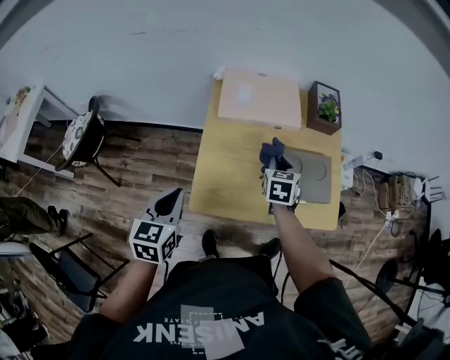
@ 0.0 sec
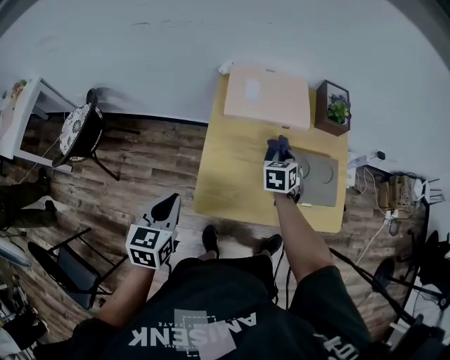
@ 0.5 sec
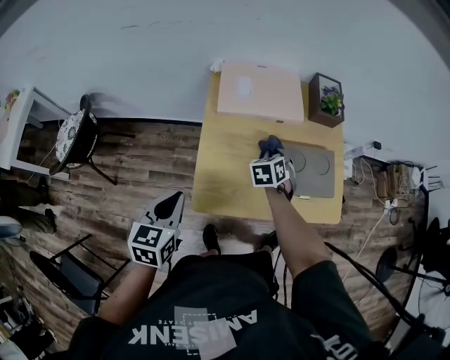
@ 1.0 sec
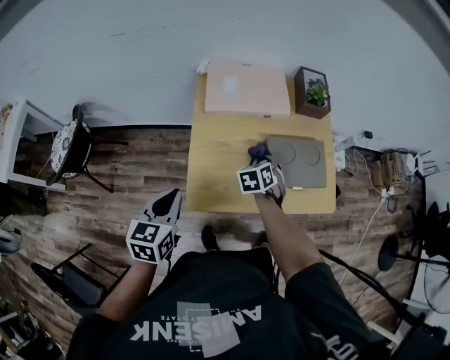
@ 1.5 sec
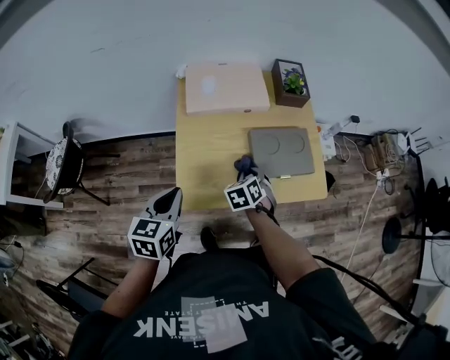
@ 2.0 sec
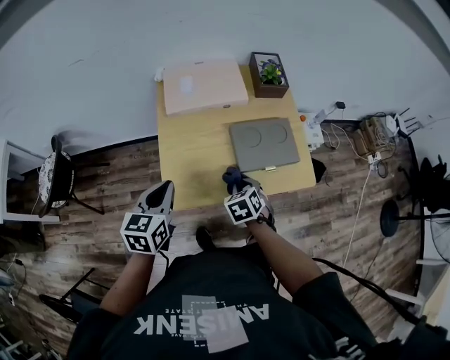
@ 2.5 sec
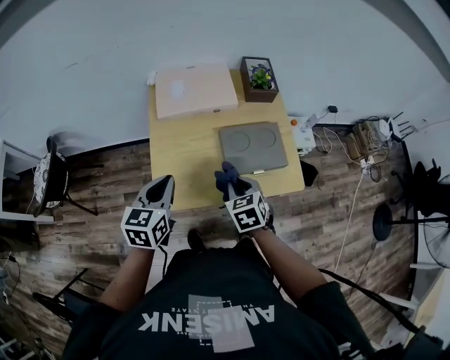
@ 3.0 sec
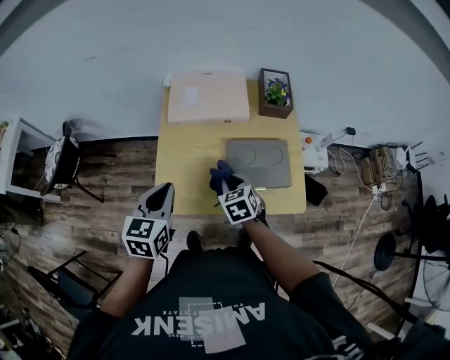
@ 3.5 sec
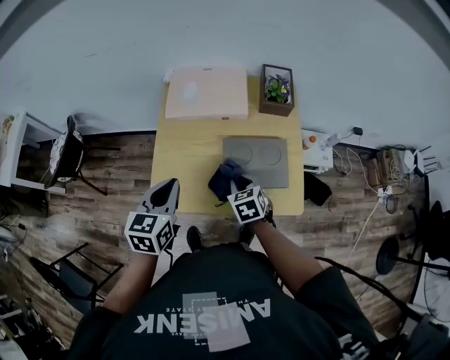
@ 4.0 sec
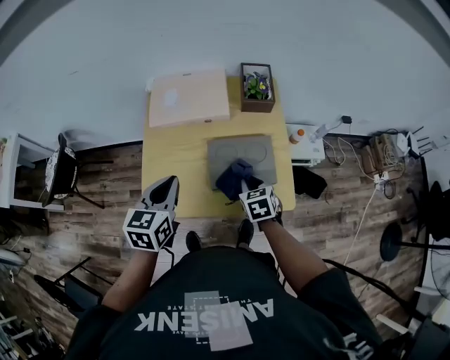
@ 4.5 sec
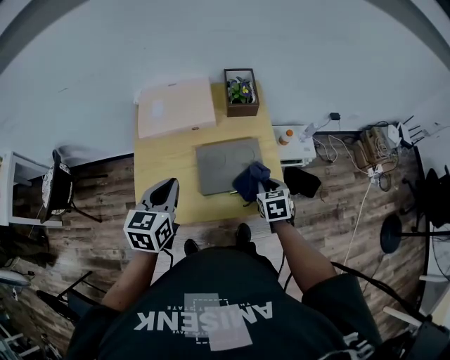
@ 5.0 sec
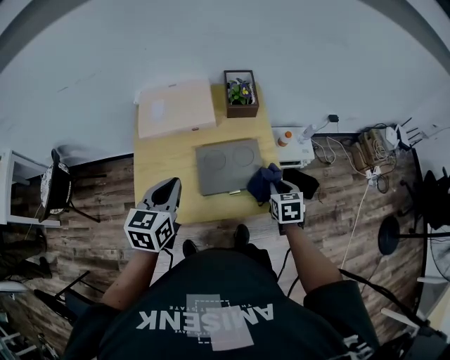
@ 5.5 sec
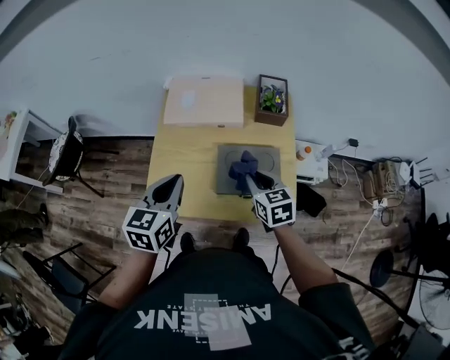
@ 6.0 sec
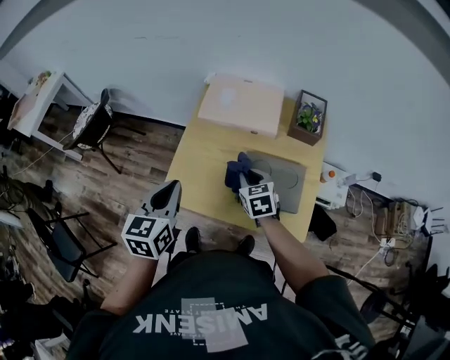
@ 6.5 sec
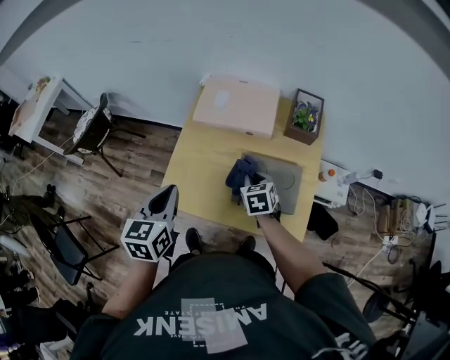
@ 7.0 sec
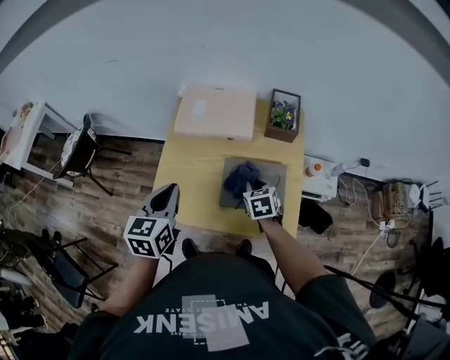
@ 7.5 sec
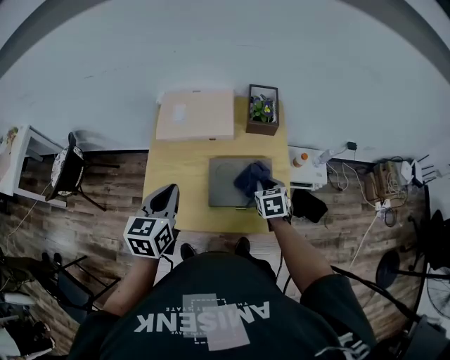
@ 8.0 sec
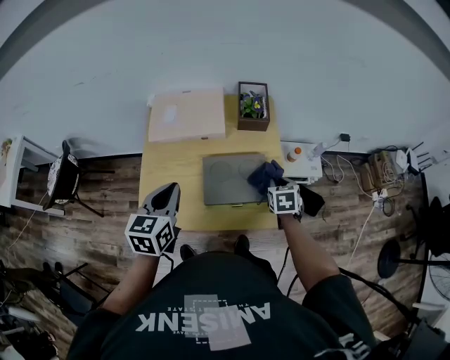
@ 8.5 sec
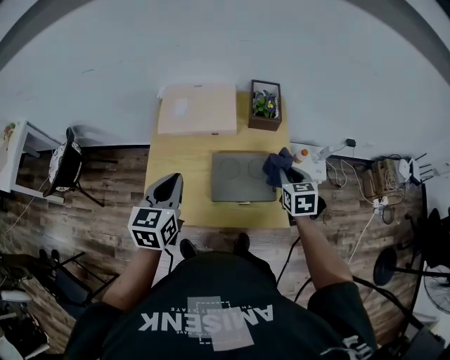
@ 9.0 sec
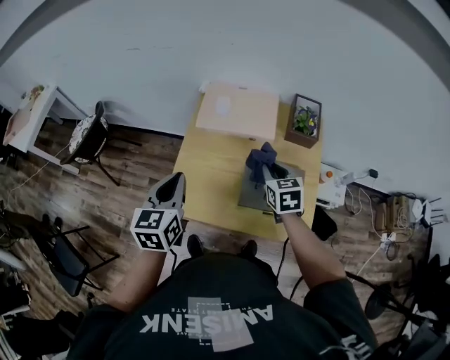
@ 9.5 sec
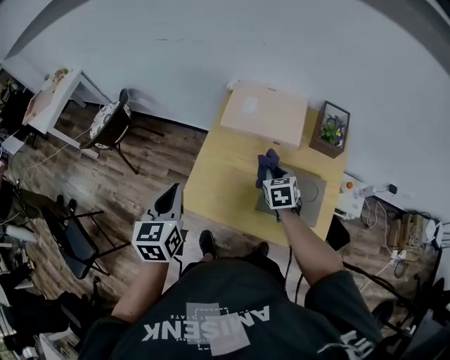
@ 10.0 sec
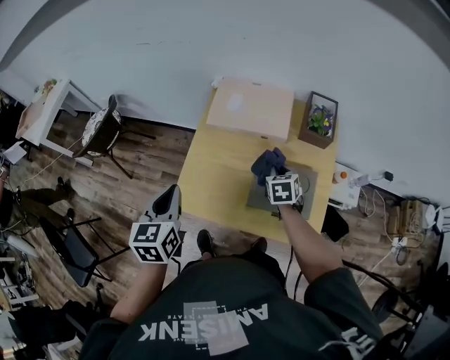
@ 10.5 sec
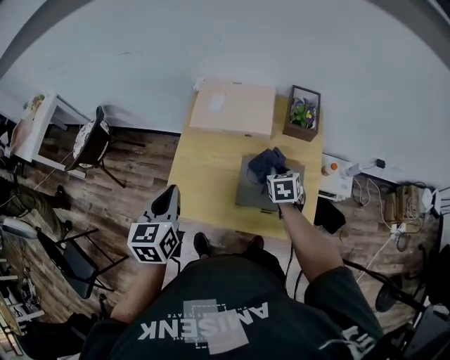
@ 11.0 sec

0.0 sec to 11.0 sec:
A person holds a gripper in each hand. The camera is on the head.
0.0 sec to 2.0 sec: The right gripper shifts approximately 10 cm backward and downward, and changes its angle by some 20 degrees.
2.0 sec to 3.5 sec: The right gripper goes roughly 5 cm upward, and changes its angle by about 20 degrees; the left gripper moves to the right, some 10 cm.
3.5 sec to 5.5 sec: The left gripper shifts roughly 10 cm to the right. The right gripper travels to the right by about 25 cm, and changes its angle by about 20 degrees.
5.5 sec to 7.5 sec: The right gripper moves about 5 cm upward and comes back, and turns by some 20 degrees.
7.5 sec to 9.0 sec: The right gripper moves to the right and upward, roughly 15 cm.
9.0 sec to 11.0 sec: The right gripper shifts some 15 cm to the left, forward and downward. Meanwhile the left gripper shifts roughly 10 cm to the left.

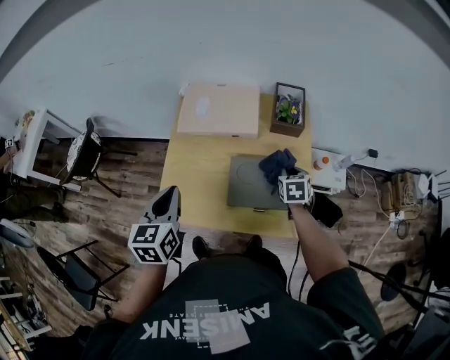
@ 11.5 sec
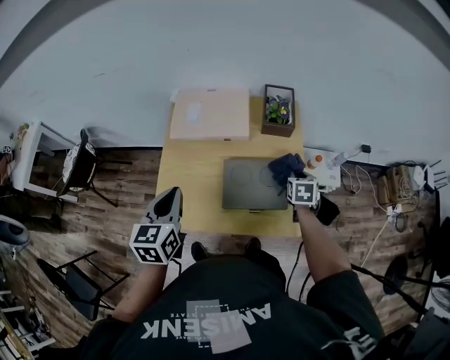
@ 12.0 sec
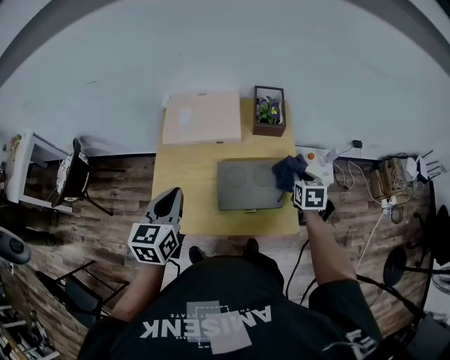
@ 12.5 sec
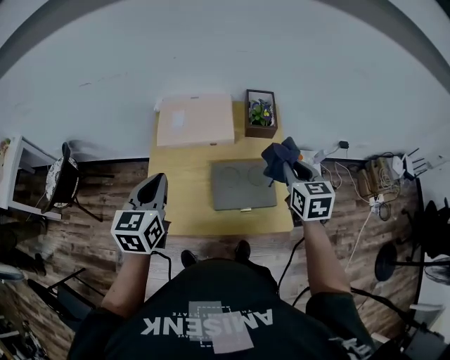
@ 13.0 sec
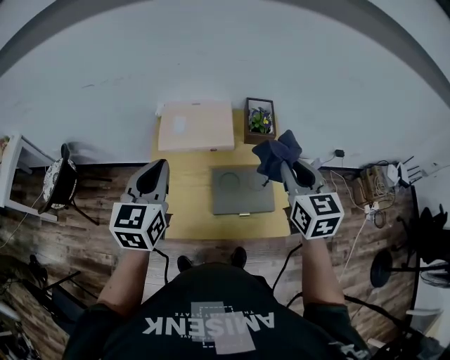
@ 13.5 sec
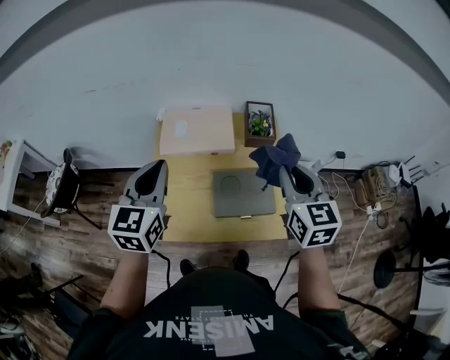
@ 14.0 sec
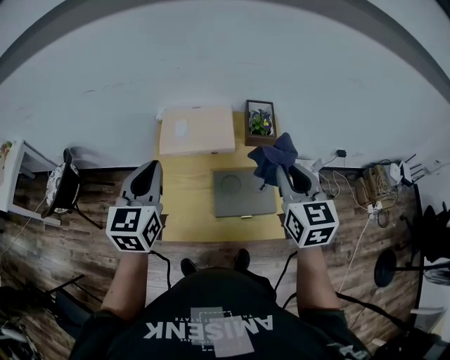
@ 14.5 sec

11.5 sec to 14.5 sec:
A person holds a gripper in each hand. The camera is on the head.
11.5 sec to 13.0 sec: The right gripper goes roughly 20 cm upward, and swivels roughly 20 degrees; the left gripper moves some 5 cm.
13.0 sec to 14.5 sec: The left gripper travels upward by about 5 cm. The right gripper heads upward and to the left, covering some 10 cm.

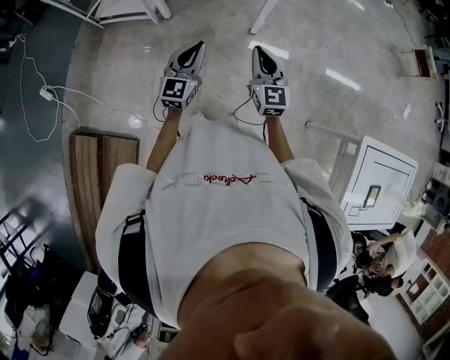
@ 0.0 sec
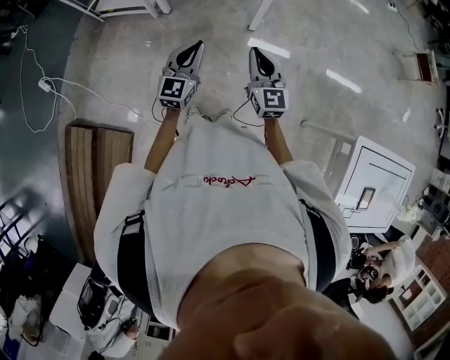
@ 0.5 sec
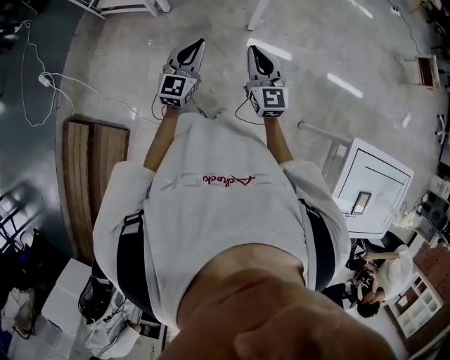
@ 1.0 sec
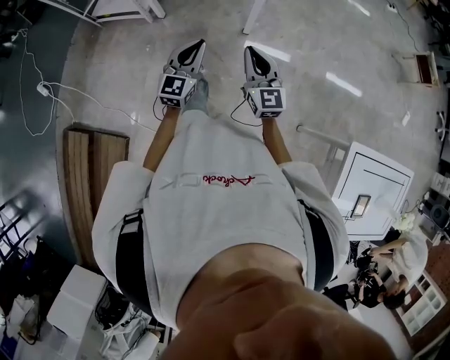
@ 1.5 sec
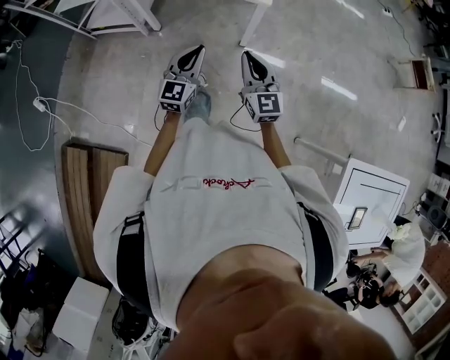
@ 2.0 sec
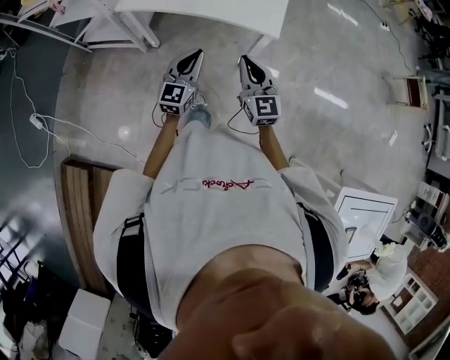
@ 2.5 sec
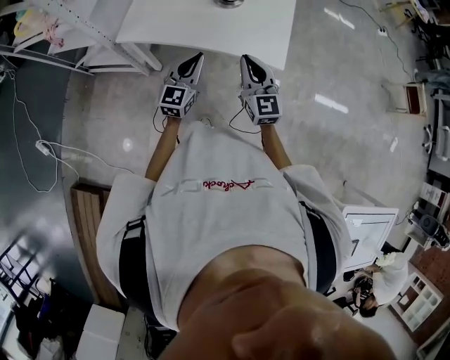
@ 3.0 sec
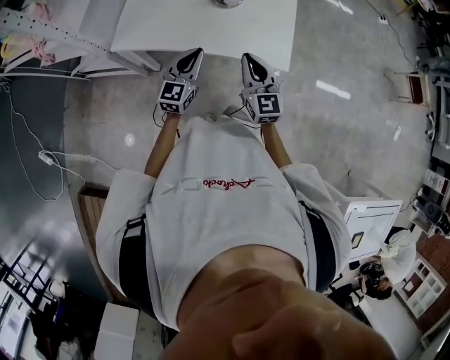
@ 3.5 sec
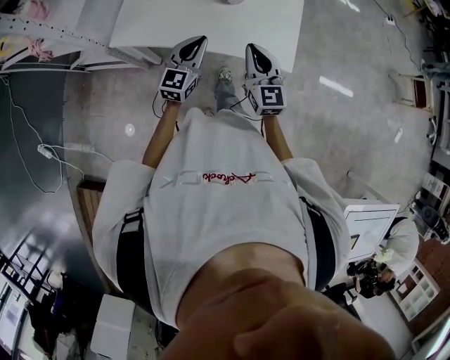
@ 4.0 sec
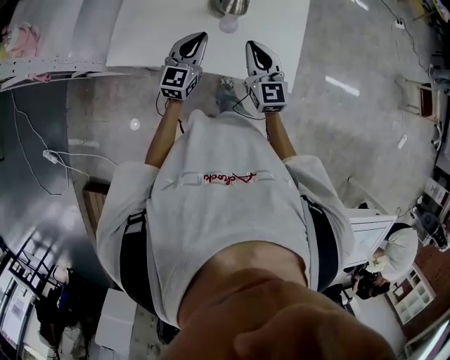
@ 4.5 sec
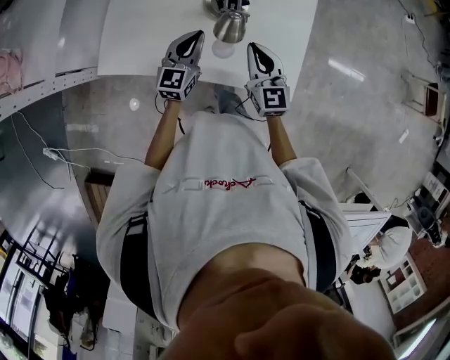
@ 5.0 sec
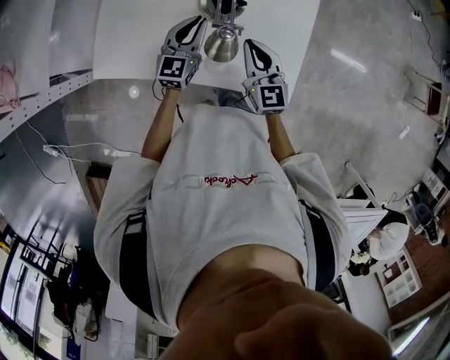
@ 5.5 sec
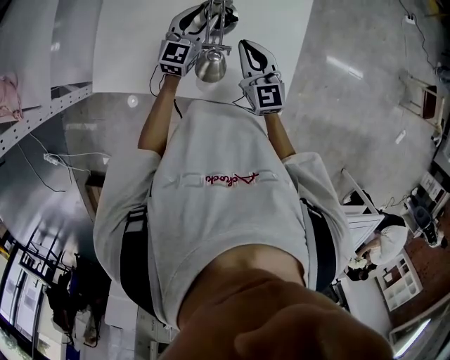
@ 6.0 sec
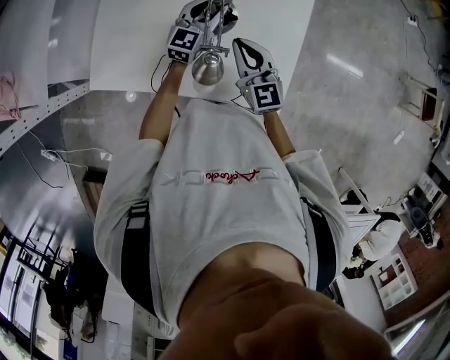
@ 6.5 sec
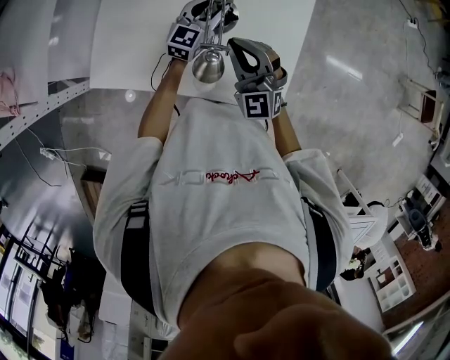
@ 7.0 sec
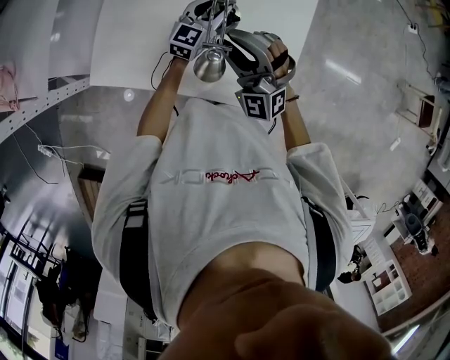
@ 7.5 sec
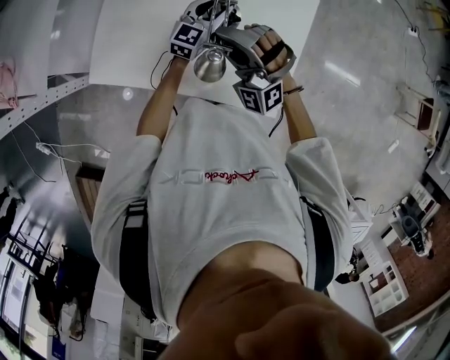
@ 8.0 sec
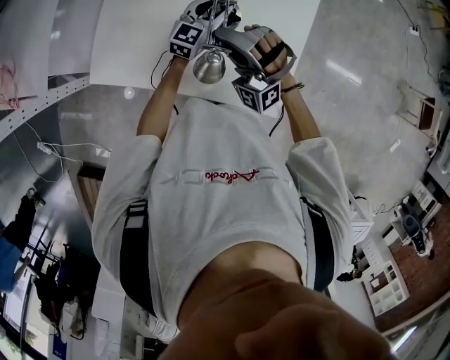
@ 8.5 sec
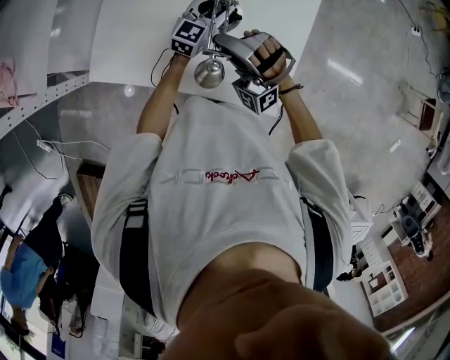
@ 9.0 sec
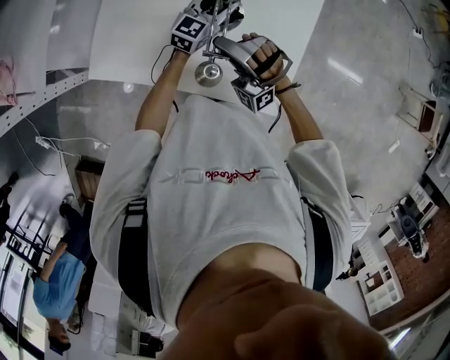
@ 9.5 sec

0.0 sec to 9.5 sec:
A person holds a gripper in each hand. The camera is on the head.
0.0 sec to 2.0 sec: The right gripper moves forward, approximately 5 cm. Meanwhile the left gripper is displaced forward and to the right by about 10 cm.
2.0 sec to 4.0 sec: Both grippers move forward, roughly 35 cm.
4.0 sec to 5.5 sec: The left gripper heads forward, covering about 20 cm. The right gripper heads forward and downward, covering roughly 15 cm.
5.5 sec to 7.5 sec: The right gripper goes some 10 cm upward and to the left, twists approximately 60 degrees counterclockwise, seen from behind, and opens up, while the left gripper goes approximately 10 cm forward and to the right, and opens up.
7.5 sec to 9.5 sec: The right gripper turns by approximately 30 degrees, and closes its fingers.

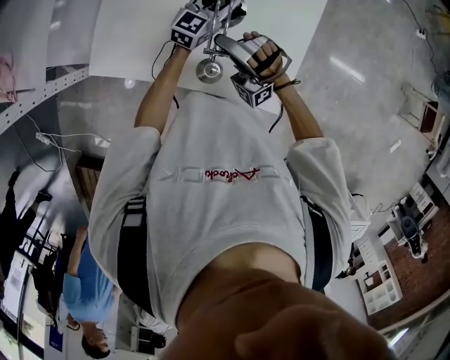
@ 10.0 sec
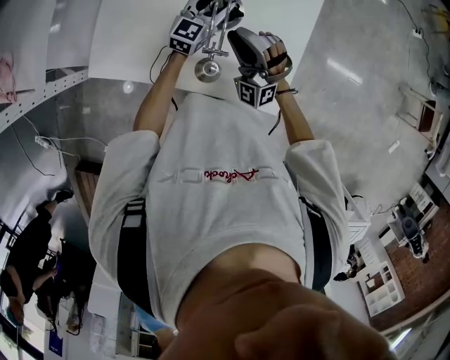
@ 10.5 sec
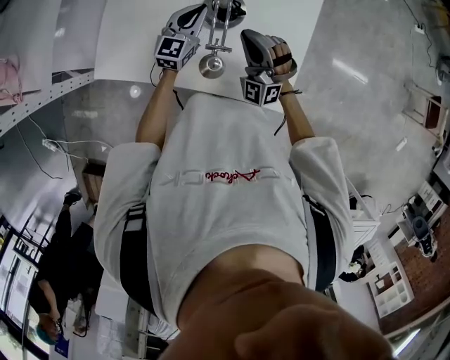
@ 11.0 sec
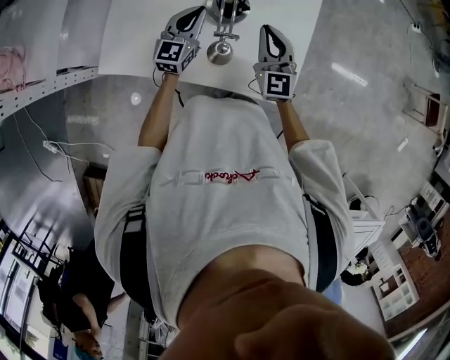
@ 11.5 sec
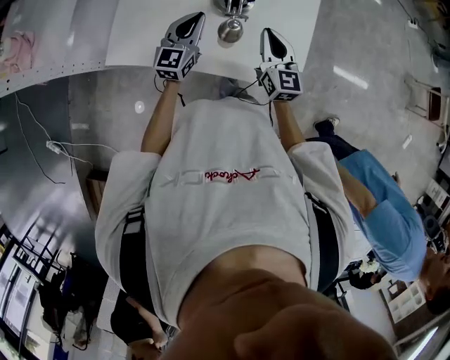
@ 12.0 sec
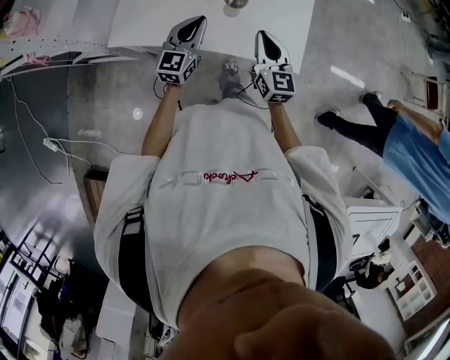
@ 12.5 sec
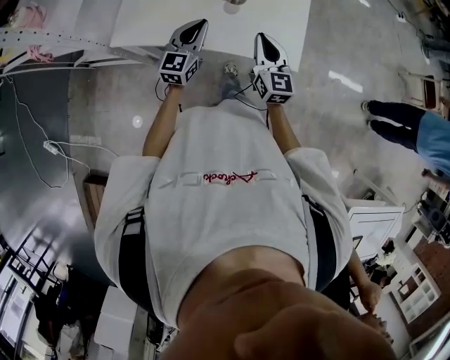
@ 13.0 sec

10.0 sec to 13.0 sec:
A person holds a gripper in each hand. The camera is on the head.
10.0 sec to 11.5 sec: The left gripper travels to the left and backward by approximately 10 cm, and closes up. The right gripper goes approximately 10 cm to the right, and rolls clockwise, seen from behind, by about 70 degrees.
11.5 sec to 13.0 sec: Both grippers travel together backward, approximately 15 cm.
